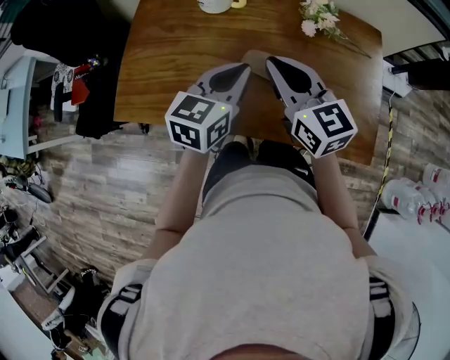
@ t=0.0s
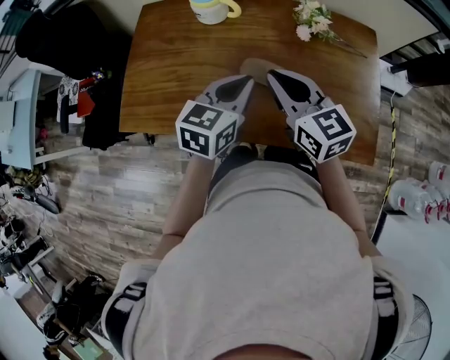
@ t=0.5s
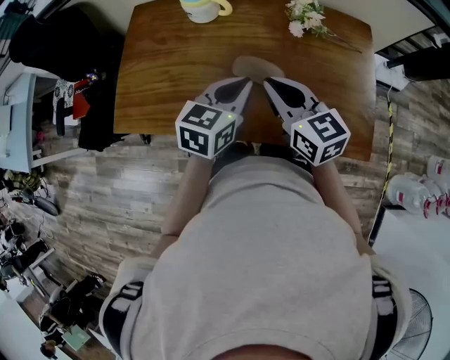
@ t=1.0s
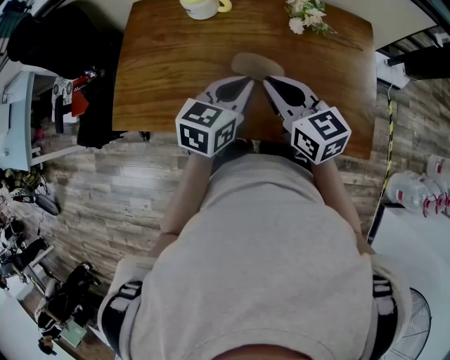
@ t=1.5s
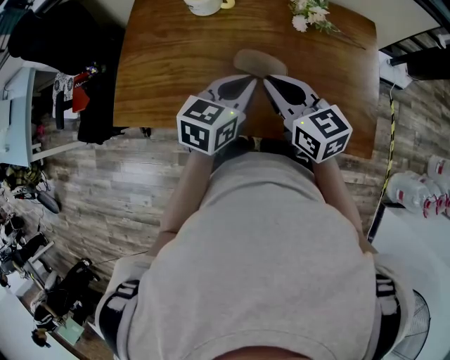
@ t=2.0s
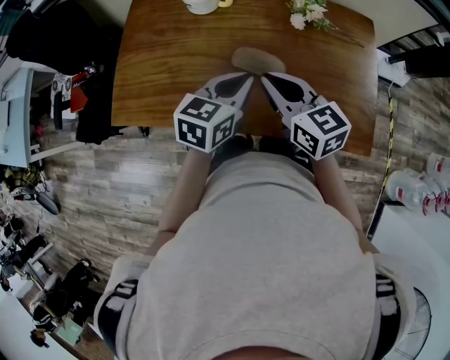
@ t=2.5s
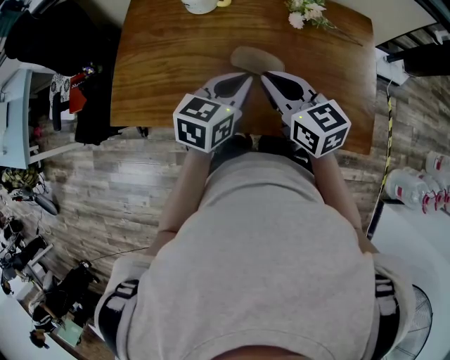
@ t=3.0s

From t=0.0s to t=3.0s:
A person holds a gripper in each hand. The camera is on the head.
From t=0.0s to t=1.5s: The left gripper moves some 5 cm, while the right gripper moves roughly 5 cm.
From t=1.5s to t=3.0s: Neither gripper changes place.

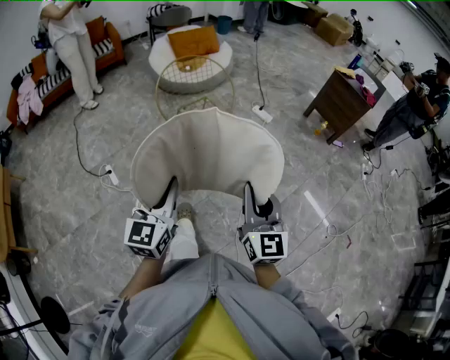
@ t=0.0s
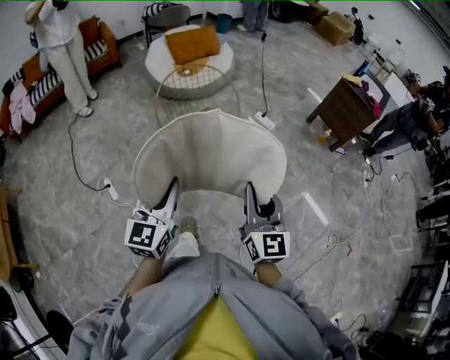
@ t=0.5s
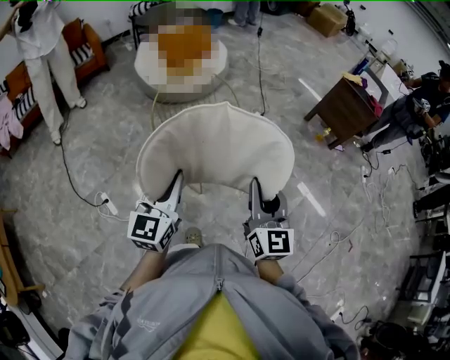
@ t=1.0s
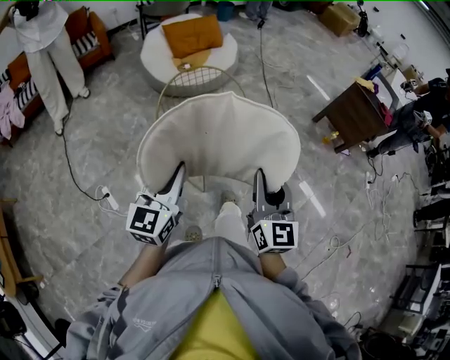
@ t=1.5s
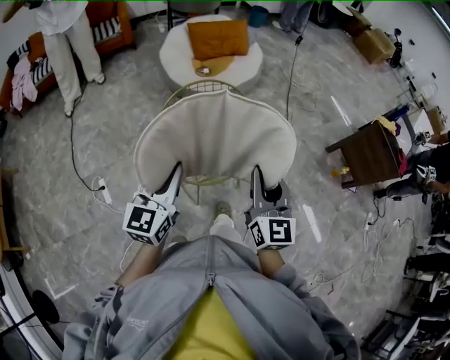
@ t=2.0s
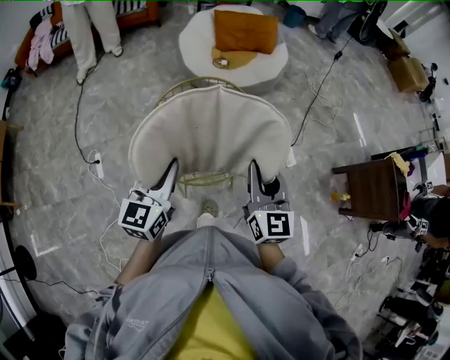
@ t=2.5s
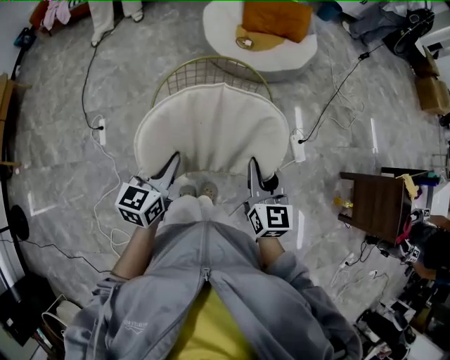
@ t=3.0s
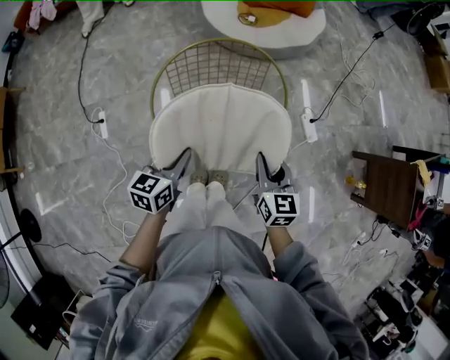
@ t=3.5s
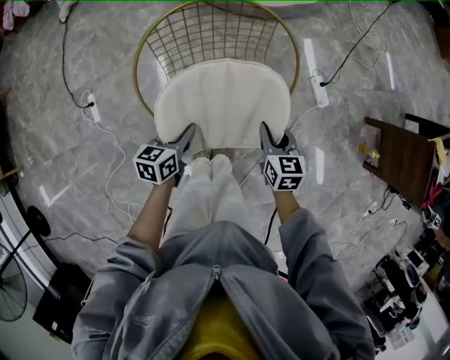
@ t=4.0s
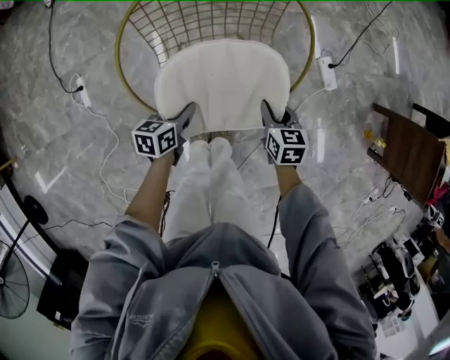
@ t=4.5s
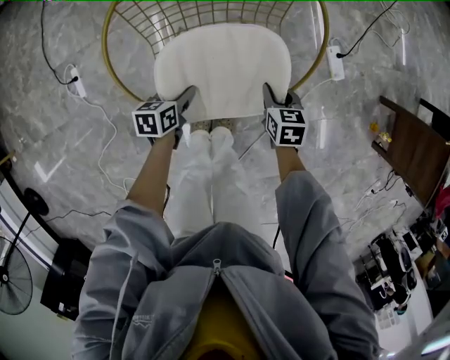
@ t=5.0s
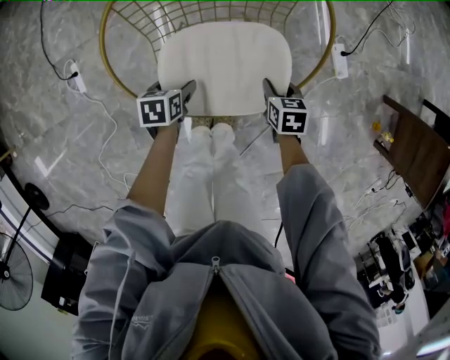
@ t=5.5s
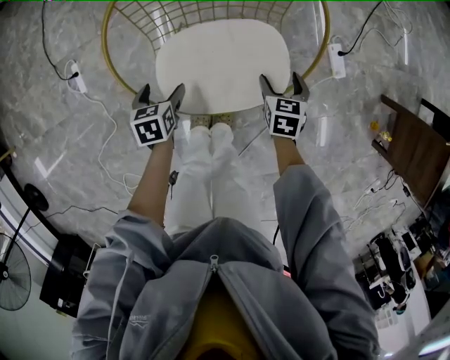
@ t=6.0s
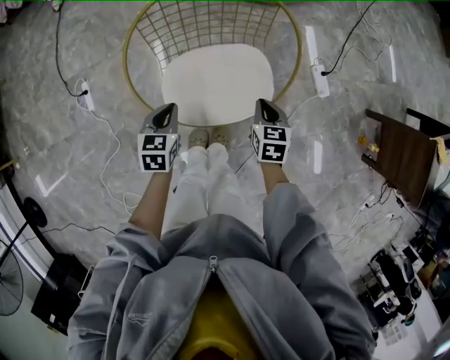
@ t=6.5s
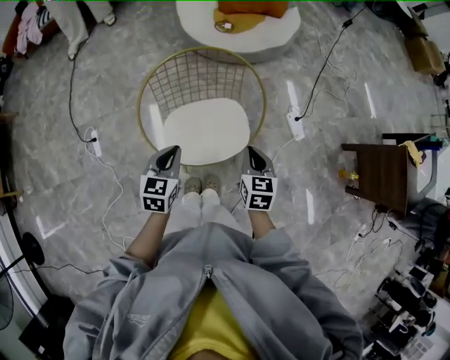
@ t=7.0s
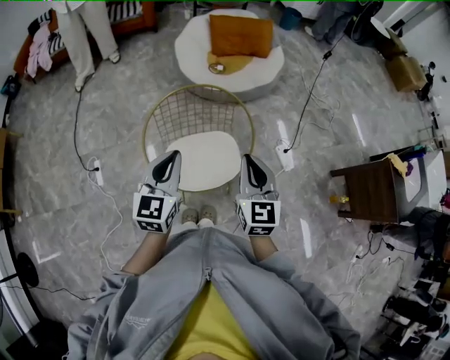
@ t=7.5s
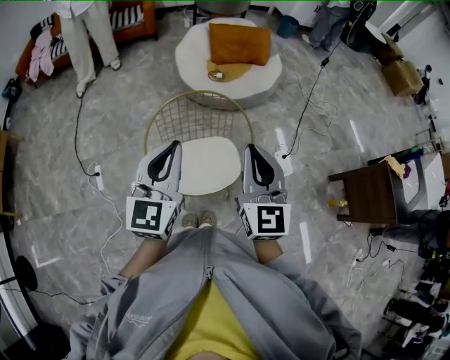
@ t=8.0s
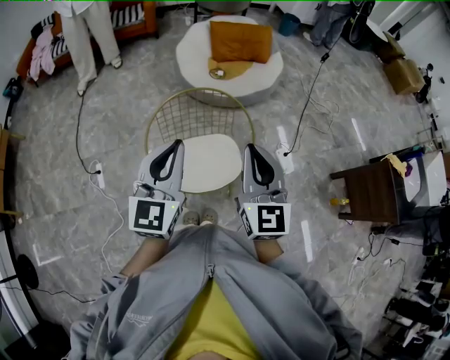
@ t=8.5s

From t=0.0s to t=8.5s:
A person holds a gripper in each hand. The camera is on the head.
From t=0.0s to t=2.0s: The two grippers travel together, forward, roughly 50 cm.
From t=2.0s to t=4.0s: The right gripper travels downward and forward by some 40 cm, and points its fingers roughly 40 degrees further downward, while the left gripper is displaced downward by roughly 35 cm, and swivels about 40 degrees.
From t=4.0s to t=6.5s: The left gripper goes downward and returns, roughly 20 cm each way, swivels approximately 30 degrees, and opens, then closes again. Meanwhile the right gripper reaches roughly 20 cm downward, then returns, and opens, then closes again.
From t=6.5s to t=8.5s: Both grippers travel together upward, some 50 cm. The left gripper points its fingers some 50 degrees further upward; the right gripper points its fingers approximately 50 degrees further upward.

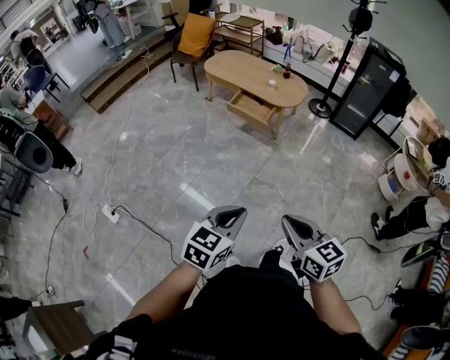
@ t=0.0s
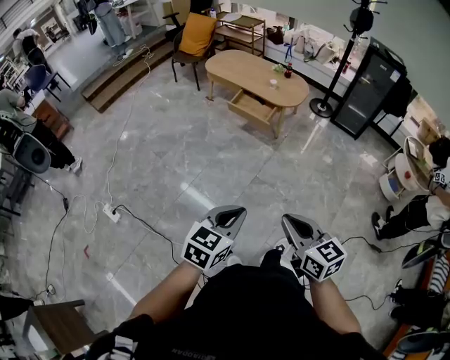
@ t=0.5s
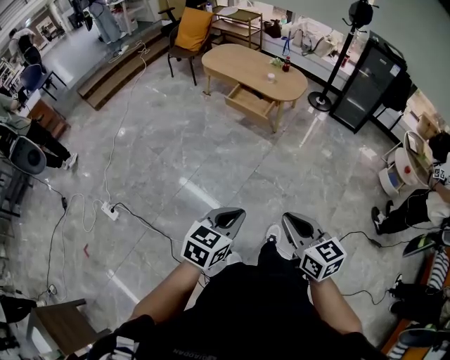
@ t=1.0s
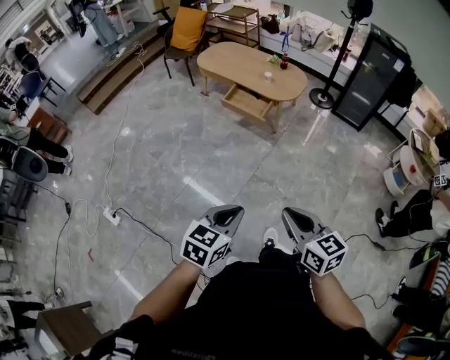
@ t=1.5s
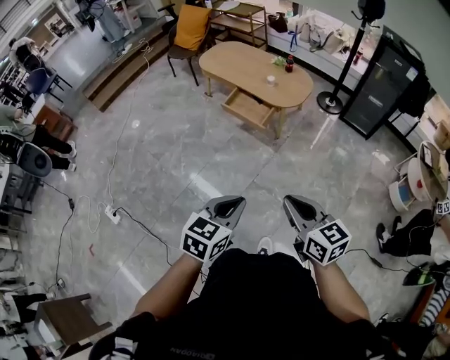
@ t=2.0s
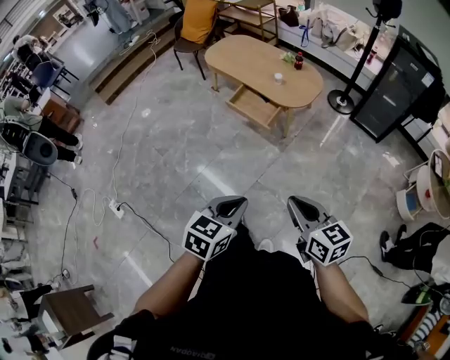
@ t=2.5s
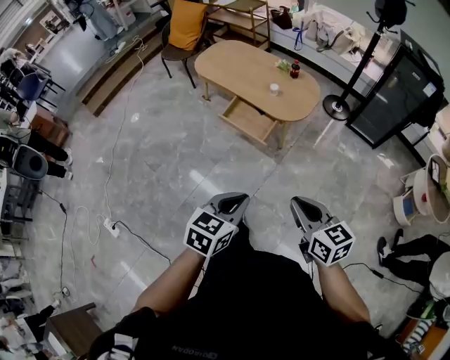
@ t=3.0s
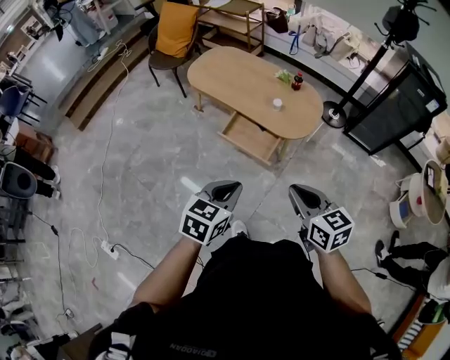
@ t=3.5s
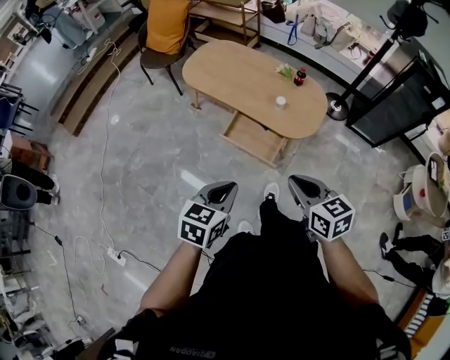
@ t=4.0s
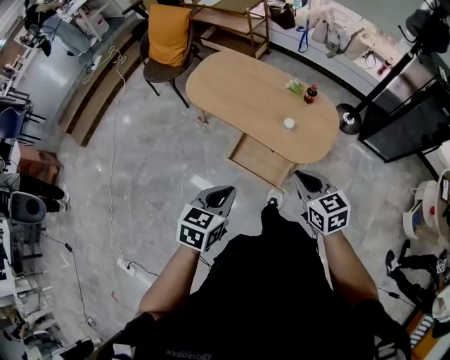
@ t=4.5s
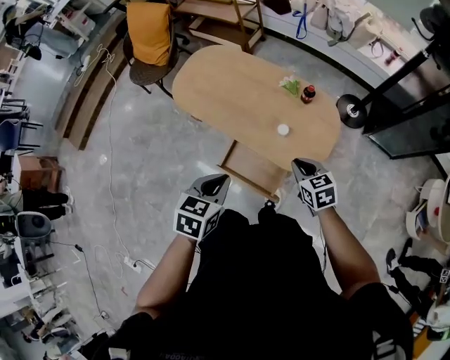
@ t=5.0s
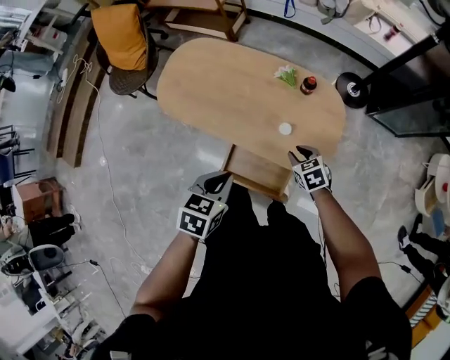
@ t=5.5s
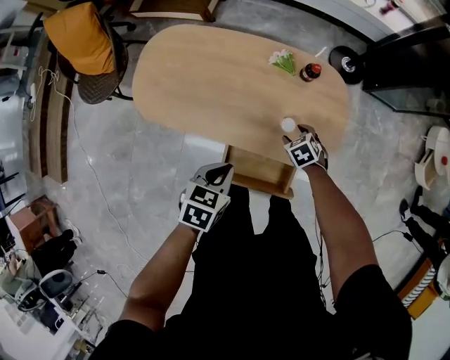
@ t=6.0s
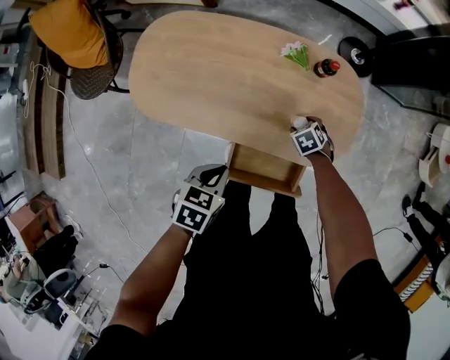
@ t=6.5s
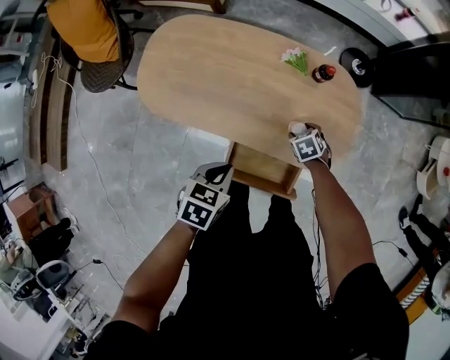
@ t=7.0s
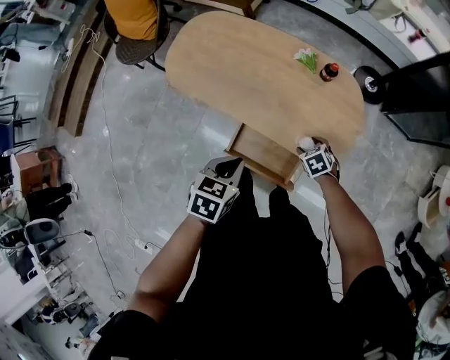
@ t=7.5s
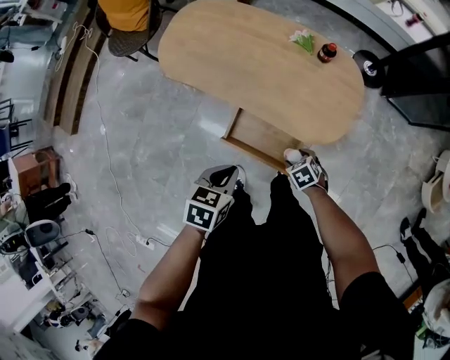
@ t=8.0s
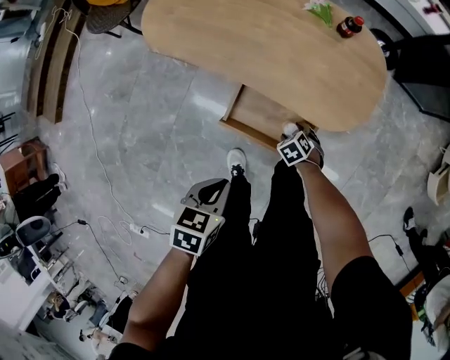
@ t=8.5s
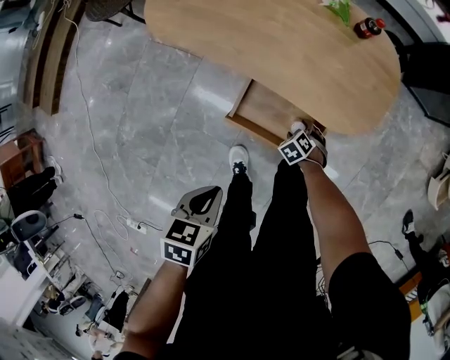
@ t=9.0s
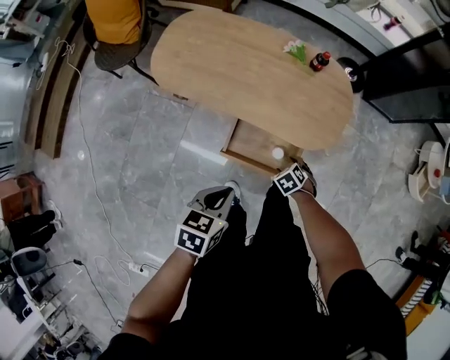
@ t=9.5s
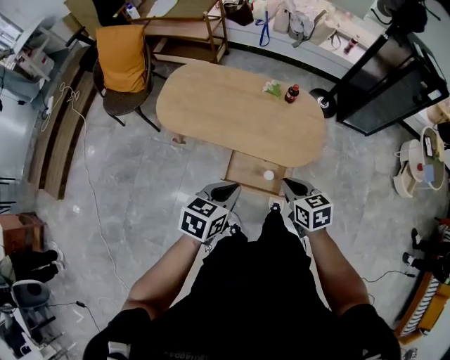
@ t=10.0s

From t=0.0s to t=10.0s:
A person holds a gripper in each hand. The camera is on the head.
From t=0.0s to t=2.0s: The two grippers go some 25 cm forward and to the right.
From t=2.0s to t=4.0s: The two grippers travel together, forward, roughly 50 cm.
From t=4.0s to t=6.0s: The pair of grippers is taken forward, some 50 cm. The left gripper moves downward, some 20 cm, and turns by about 30 degrees; the right gripper moves downward, some 40 cm, tilts its fingers about 40 degrees downward, and opens its fingers.
From t=6.0s to t=8.0s: The left gripper reaches roughly 5 cm downward, then returns. The right gripper reaches approximately 5 cm downward, then returns.
From t=8.0s to t=10.0s: The left gripper goes roughly 15 cm upward, and turns by approximately 30 degrees. Meanwhile the right gripper goes roughly 30 cm upward, swivels about 40 degrees, and closes.

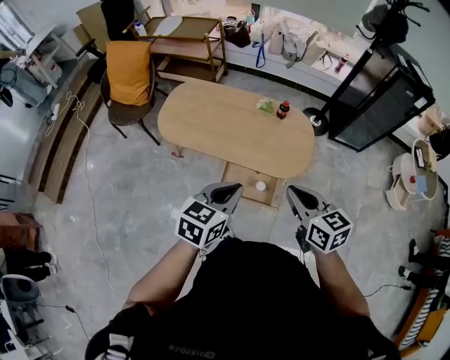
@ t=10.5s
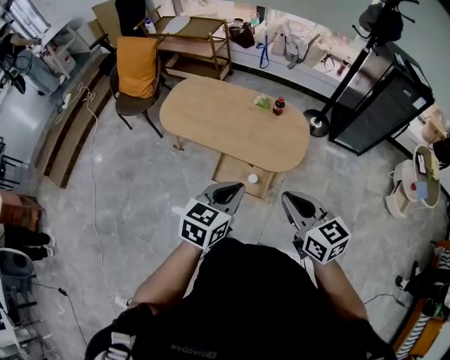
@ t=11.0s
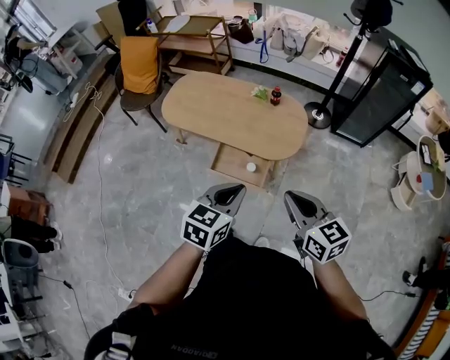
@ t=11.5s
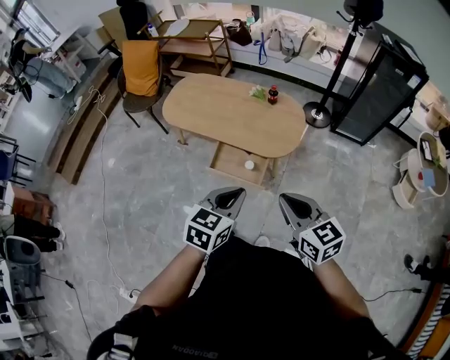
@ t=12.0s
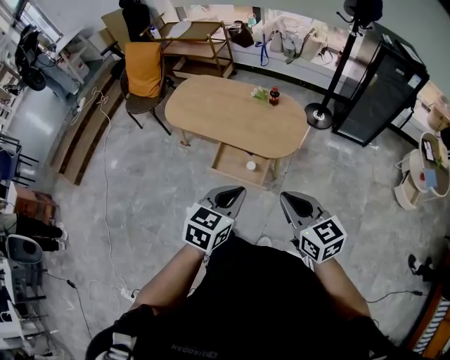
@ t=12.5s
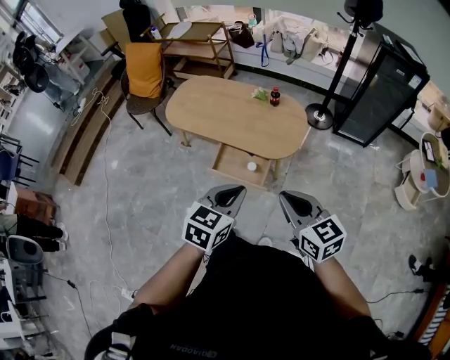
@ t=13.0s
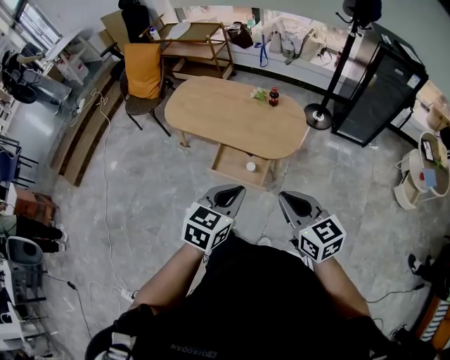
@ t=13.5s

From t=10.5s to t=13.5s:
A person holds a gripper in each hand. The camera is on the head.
From t=10.5s to t=12.0s: Both grippers move backward and to the right, approximately 25 cm.
From t=12.0s to t=13.5s: The grippers stay close to where they were, moving slightly.

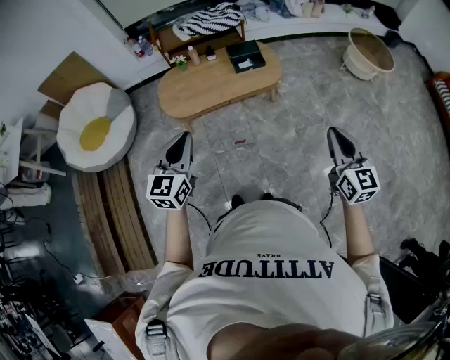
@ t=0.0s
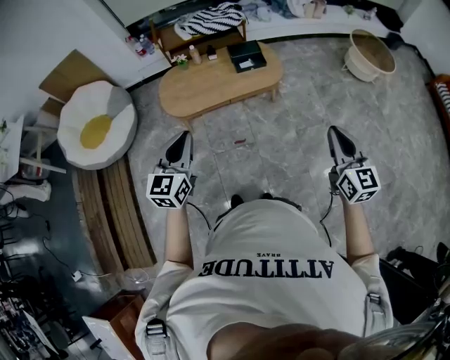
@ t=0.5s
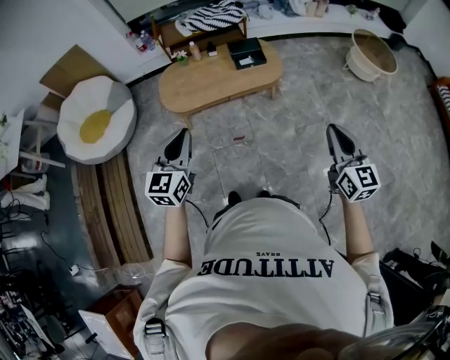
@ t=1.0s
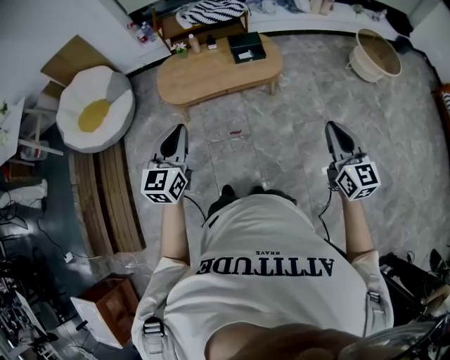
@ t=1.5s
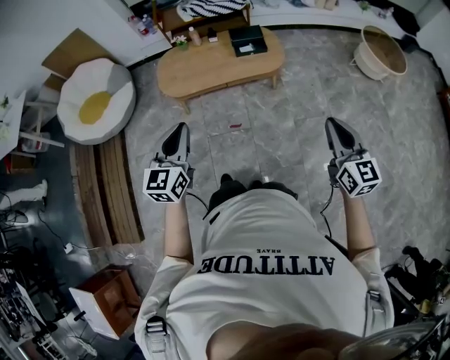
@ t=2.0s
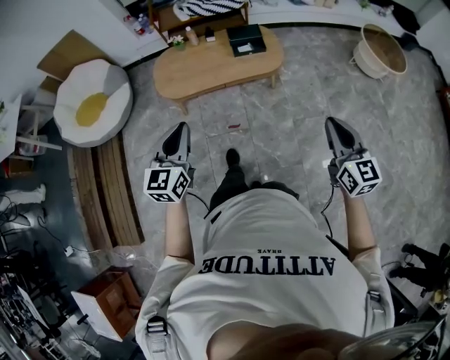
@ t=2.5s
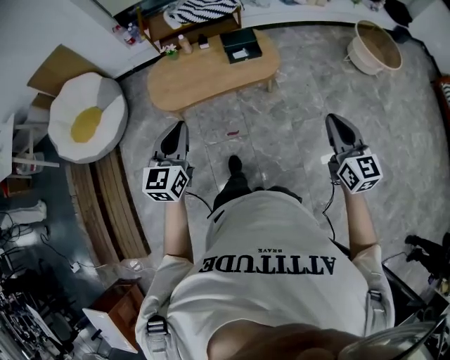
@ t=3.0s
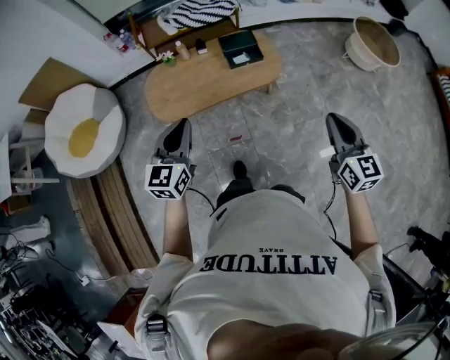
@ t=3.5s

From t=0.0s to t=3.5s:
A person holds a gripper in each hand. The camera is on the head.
From t=0.0s to t=2.0s: Both grippers travel together to the right, approximately 10 cm.
From t=2.0s to t=3.5s: Both grippers travel together forward, some 20 cm.
